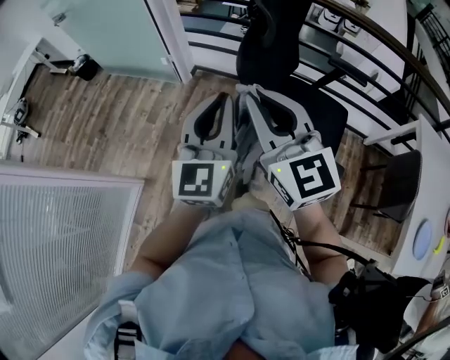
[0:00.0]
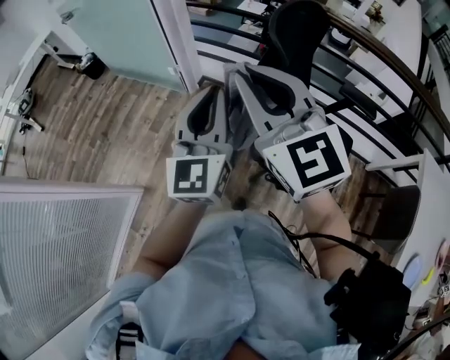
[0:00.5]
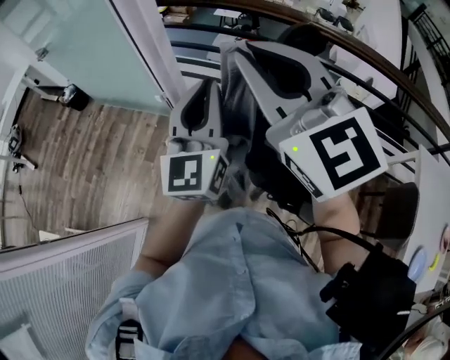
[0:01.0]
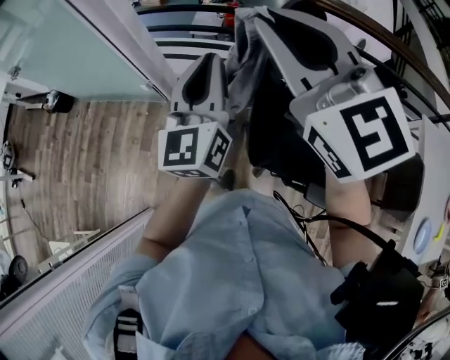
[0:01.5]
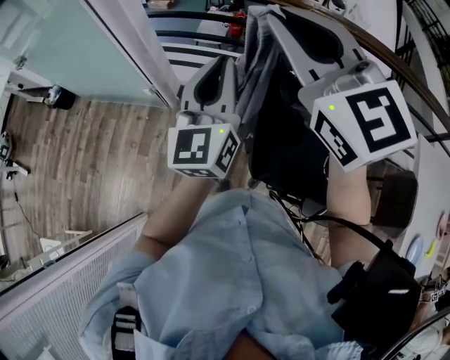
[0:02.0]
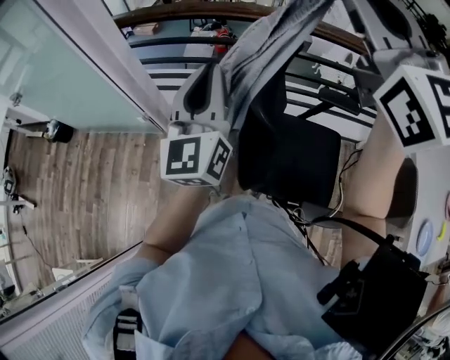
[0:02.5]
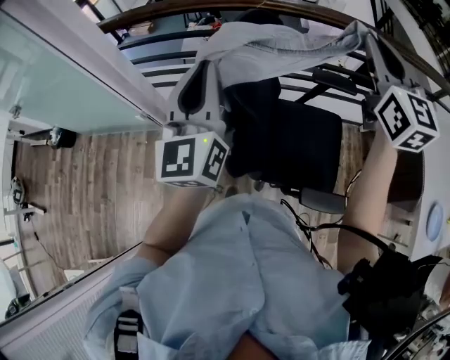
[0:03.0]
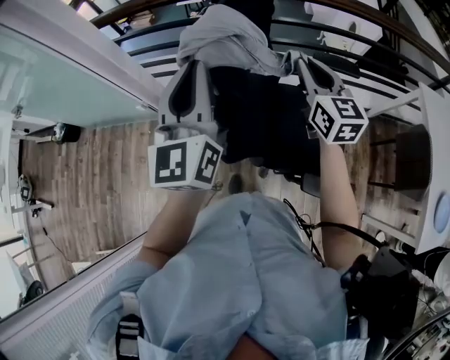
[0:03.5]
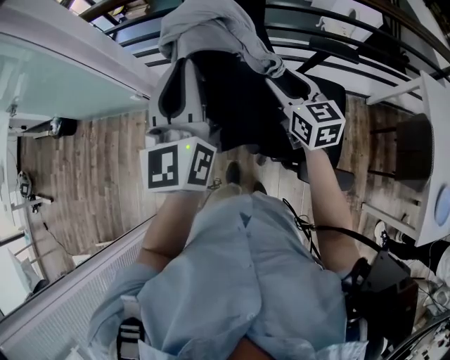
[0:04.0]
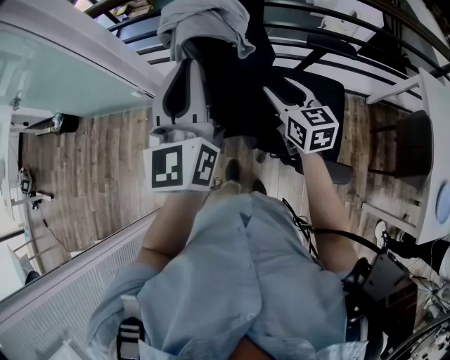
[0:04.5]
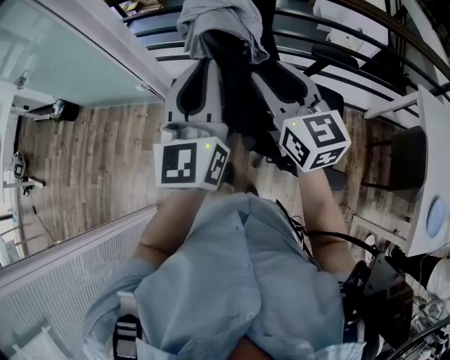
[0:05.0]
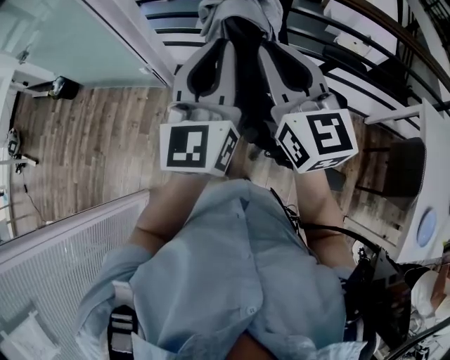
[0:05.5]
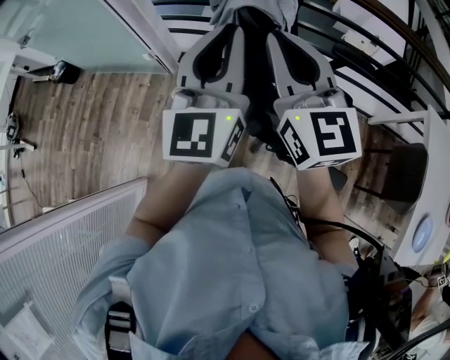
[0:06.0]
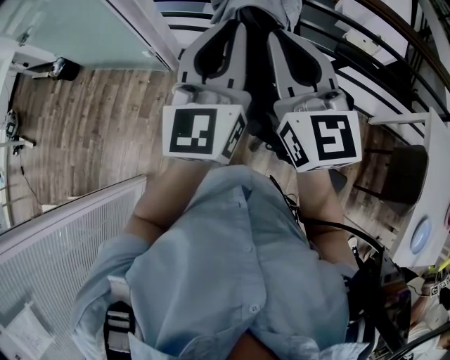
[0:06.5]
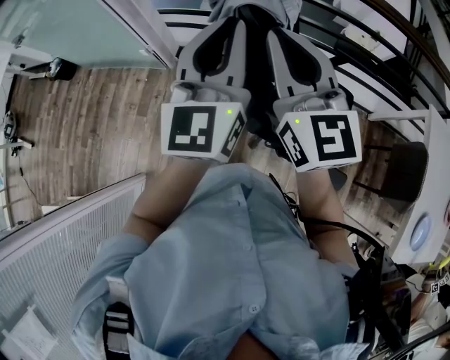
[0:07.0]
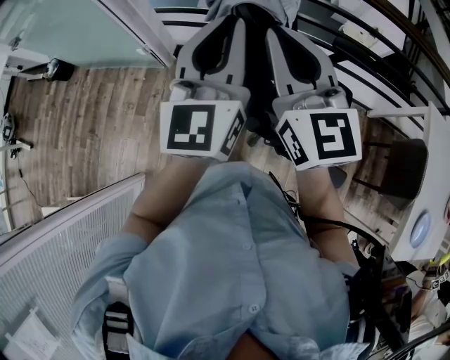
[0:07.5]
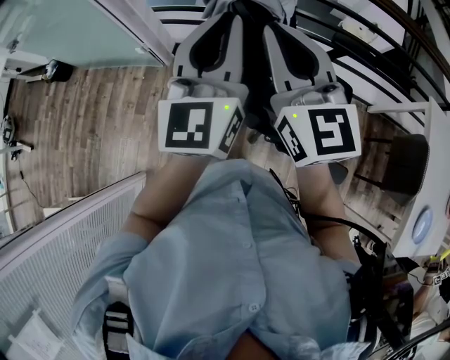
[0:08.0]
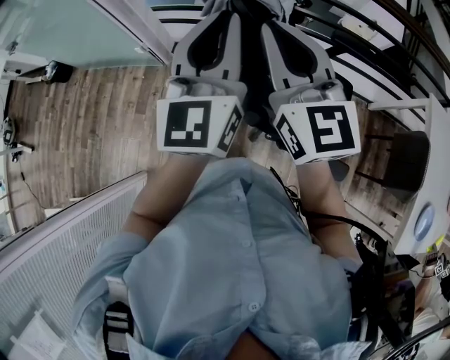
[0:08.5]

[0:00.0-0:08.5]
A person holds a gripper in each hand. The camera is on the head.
0:00.0 to 0:02.0: The left gripper moves forward, approximately 35 cm; the right gripper is displaced forward and upward by approximately 35 cm.
0:02.0 to 0:04.0: The right gripper travels downward and to the right by some 35 cm, changes its angle by approximately 40 degrees, and opens its fingers; the left gripper moves to the right and backward, roughly 10 cm.
0:04.0 to 0:06.5: The right gripper moves upward and to the left, roughly 20 cm, rotates about 30 degrees, and closes up.
0:06.5 to 0:08.5: Both grippers stay about where they are.

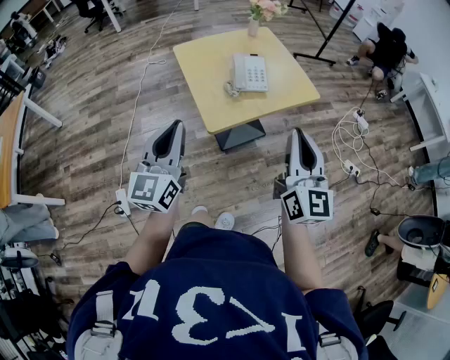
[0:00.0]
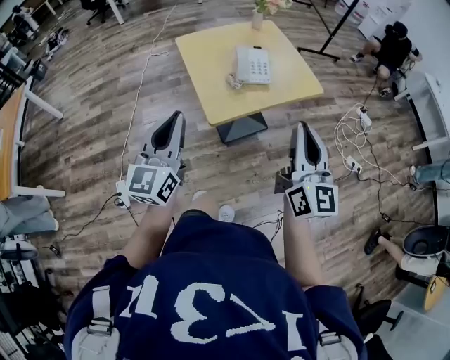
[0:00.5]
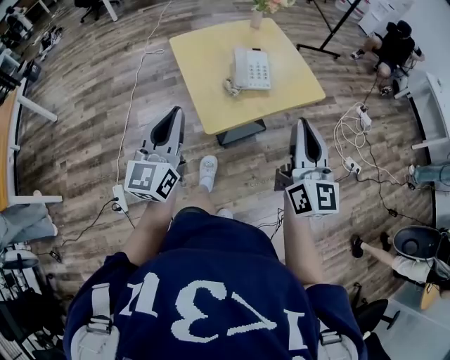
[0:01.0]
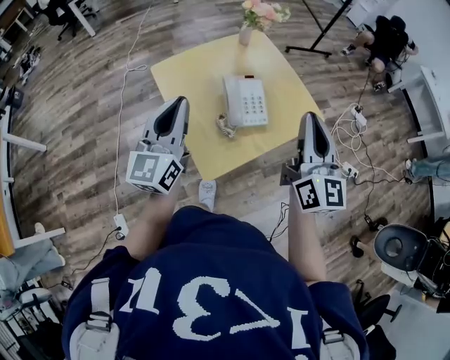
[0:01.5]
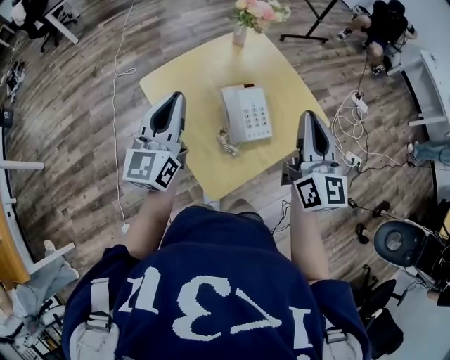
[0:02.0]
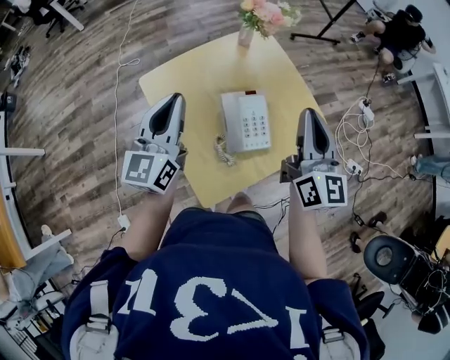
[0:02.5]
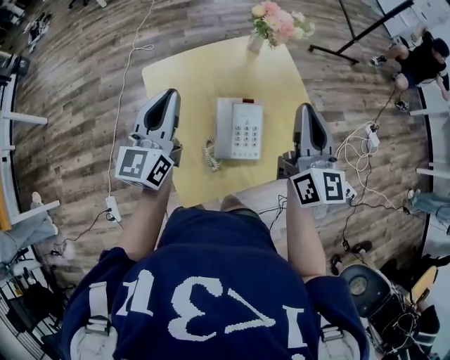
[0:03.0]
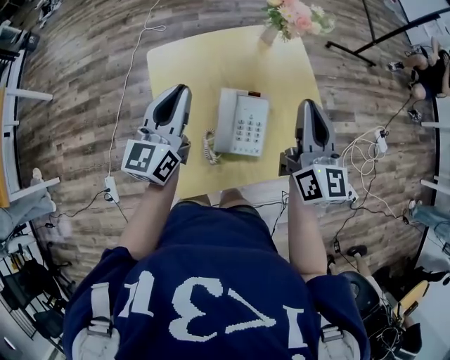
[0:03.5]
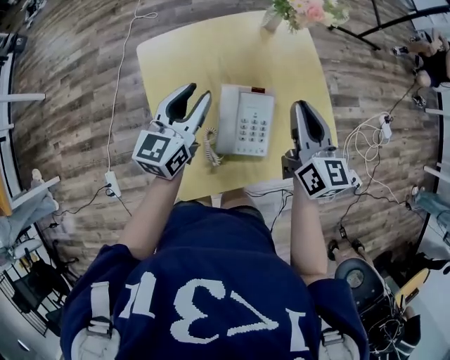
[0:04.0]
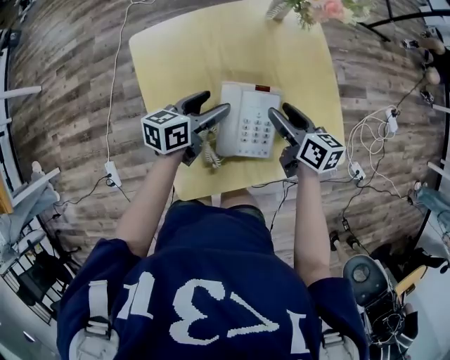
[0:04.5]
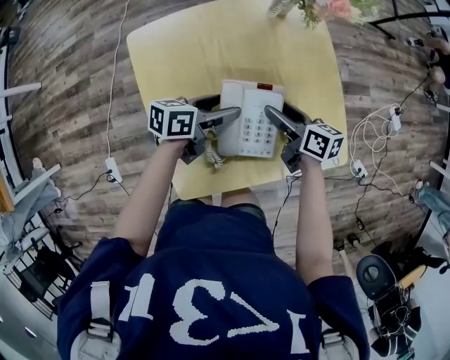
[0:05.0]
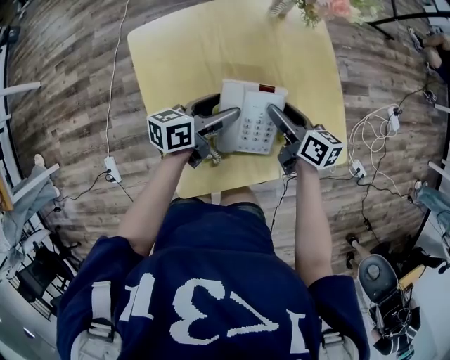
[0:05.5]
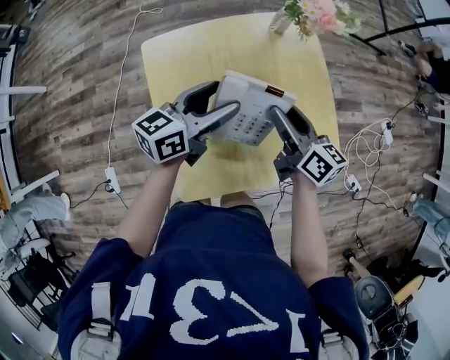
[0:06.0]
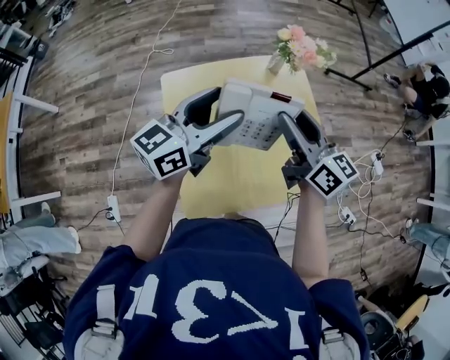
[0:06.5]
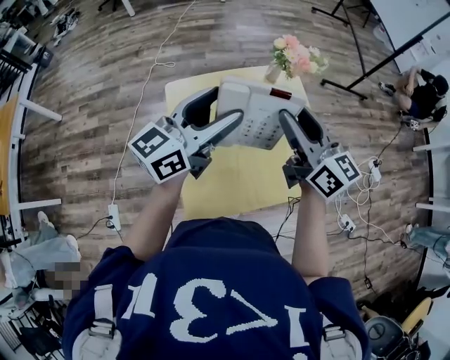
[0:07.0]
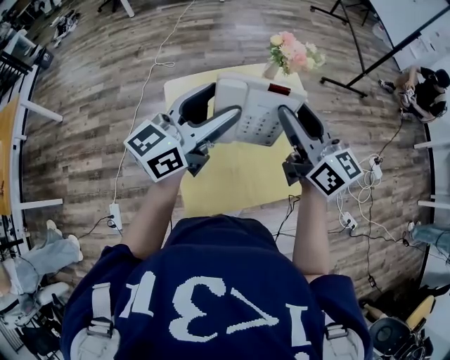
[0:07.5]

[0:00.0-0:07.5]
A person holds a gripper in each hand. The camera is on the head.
0:00.0 to 0:02.0: Both grippers travel together forward, roughly 35 cm.
0:02.0 to 0:04.0: The right gripper is displaced forward and downward by some 20 cm, and rotates some 30 degrees, while the left gripper is displaced downward, forward and to the right by about 20 cm, changes its angle by about 20 degrees, and opens up.
0:04.0 to 0:05.5: The left gripper is displaced downward and to the right by approximately 15 cm, turns by roughly 40 degrees, and opens; the right gripper moves downward, some 15 cm, turns by approximately 40 degrees, and opens its fingers.
0:05.5 to 0:07.5: Both grippers travel together upward, about 35 cm. The left gripper turns by roughly 50 degrees. The right gripper angles its fingers upward, by approximately 30 degrees.

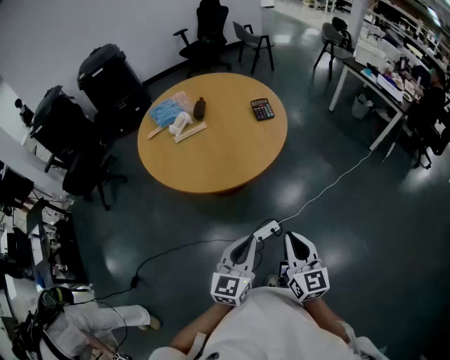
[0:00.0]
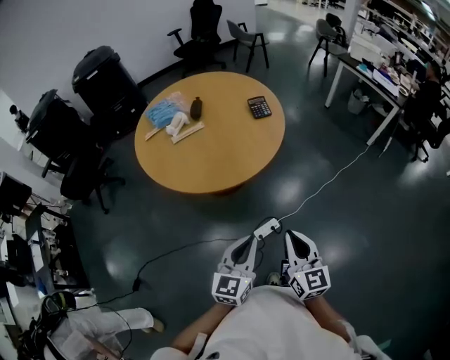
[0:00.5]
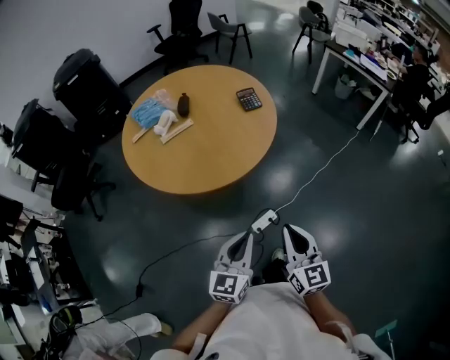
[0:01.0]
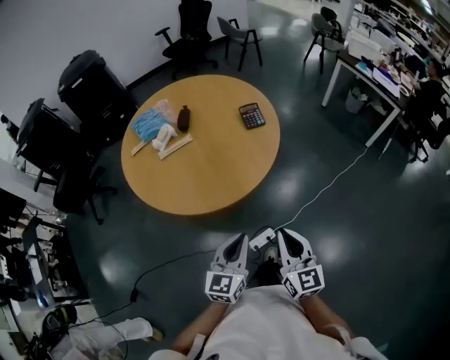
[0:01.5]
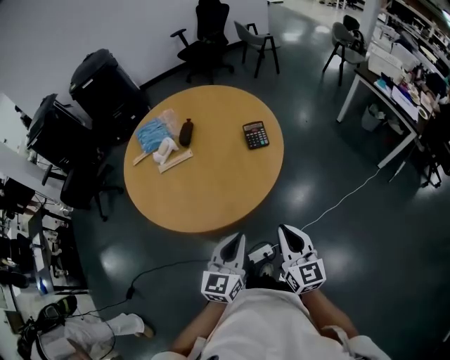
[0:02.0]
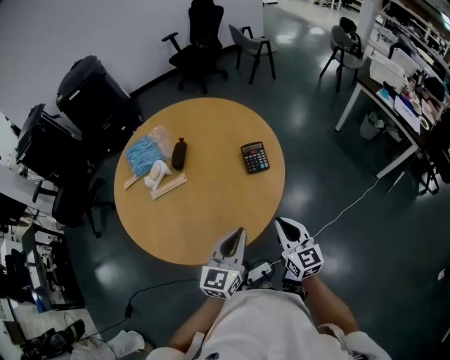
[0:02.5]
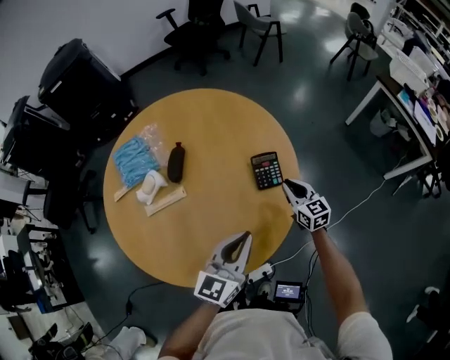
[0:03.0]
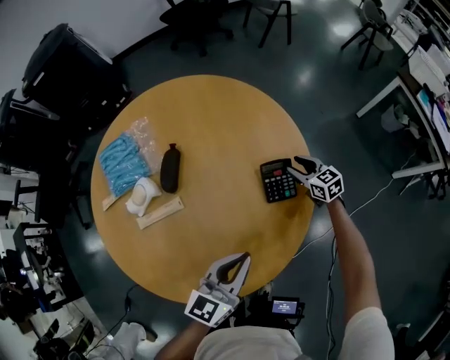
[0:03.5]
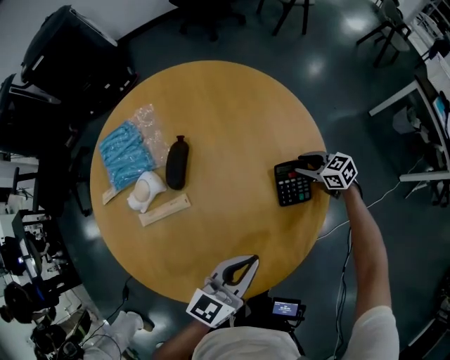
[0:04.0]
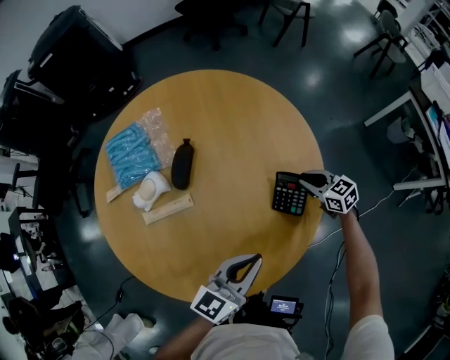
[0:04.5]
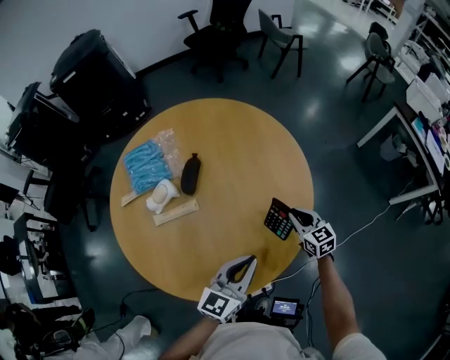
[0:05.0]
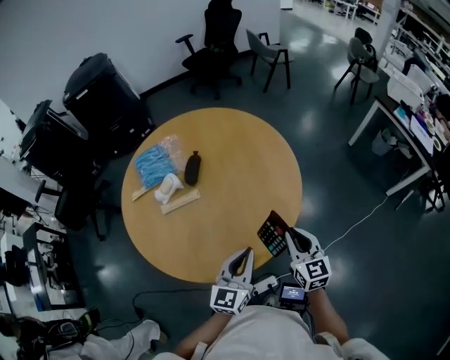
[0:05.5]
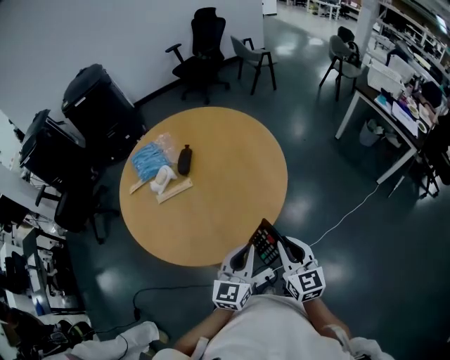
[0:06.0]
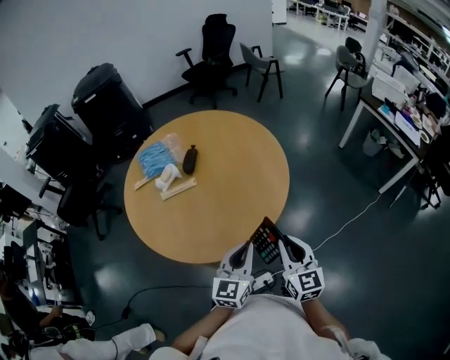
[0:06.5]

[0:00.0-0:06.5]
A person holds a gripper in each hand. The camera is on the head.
0:00.0 to 0:02.0: The two grippers go approximately 25 cm forward.
0:02.0 to 0:04.5: The left gripper travels forward by approximately 35 cm, and changes its angle by about 20 degrees. The right gripper is displaced forward and downward by about 60 cm, changes its angle by about 50 degrees, and opens, then closes again.
0:04.5 to 0:06.5: The right gripper shifts about 50 cm backward and upward, and changes its angle by some 40 degrees. Meanwhile the left gripper shifts about 25 cm backward, and changes its angle by approximately 20 degrees.

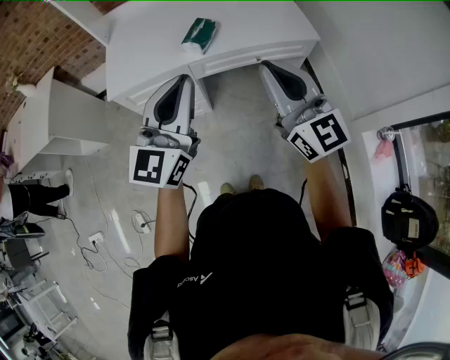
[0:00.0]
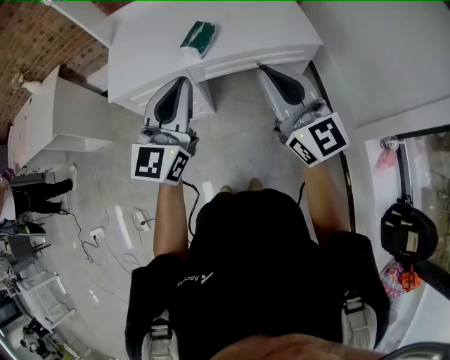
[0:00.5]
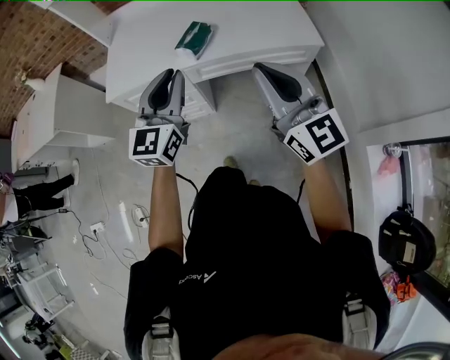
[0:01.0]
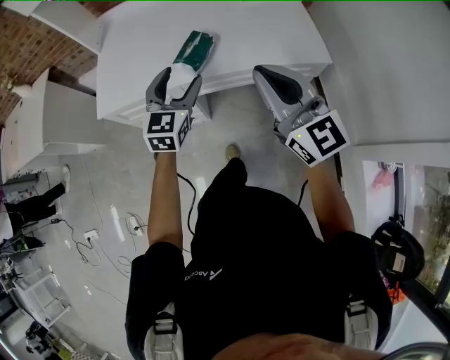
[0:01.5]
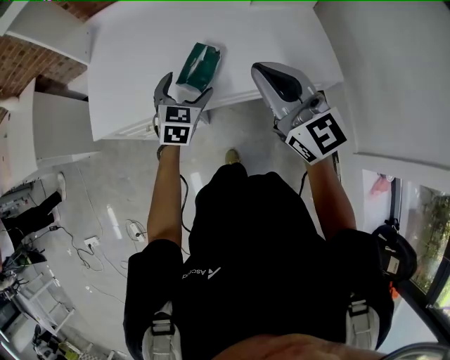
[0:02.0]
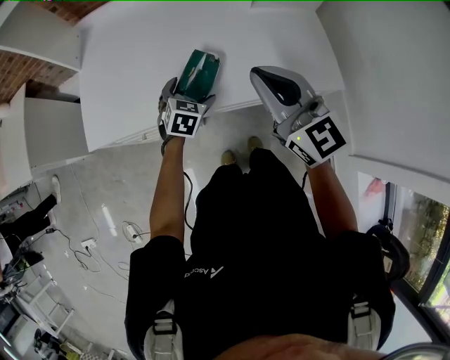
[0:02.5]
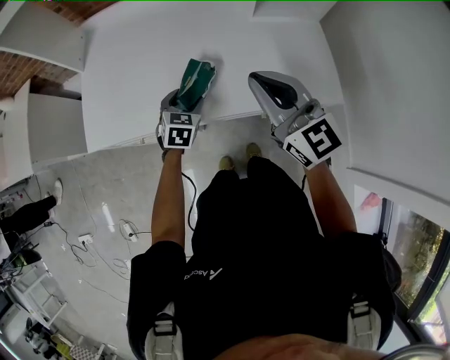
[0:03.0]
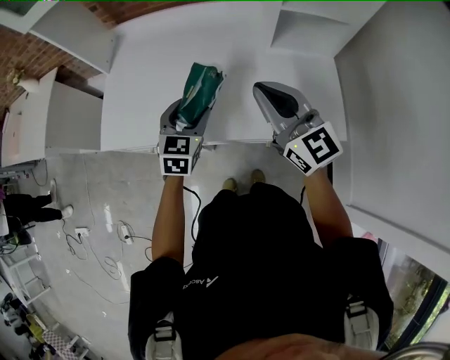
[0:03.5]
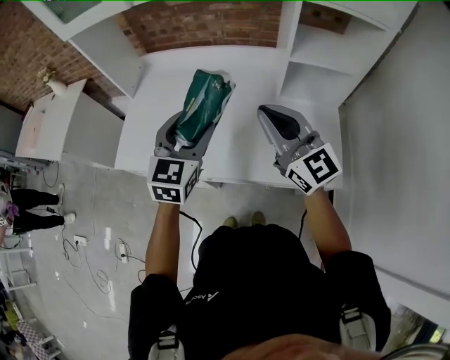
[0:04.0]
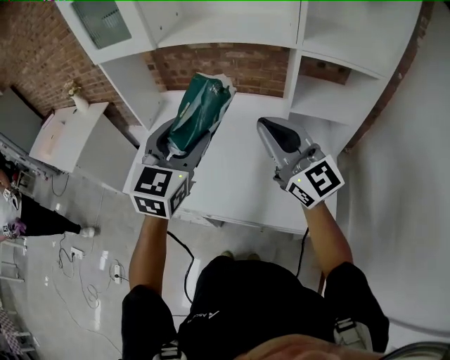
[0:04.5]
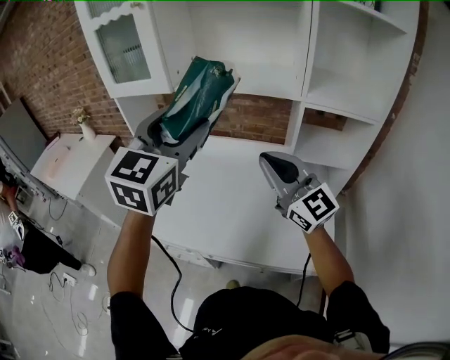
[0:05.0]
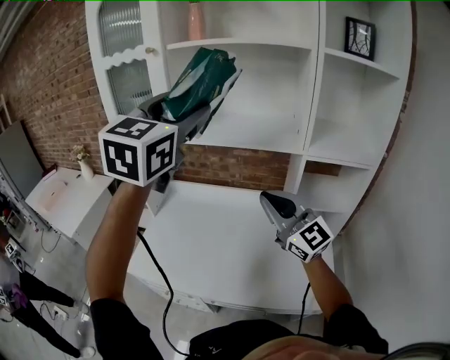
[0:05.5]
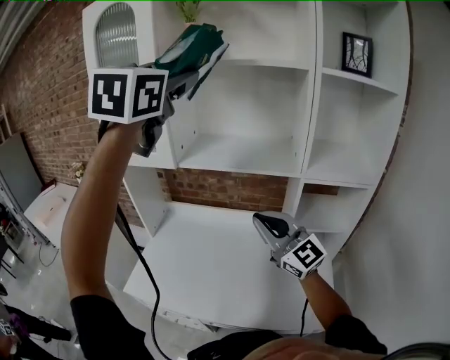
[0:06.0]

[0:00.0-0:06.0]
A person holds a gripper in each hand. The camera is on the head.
0:00.0 to 0:02.0: The left gripper moves forward and downward, roughly 50 cm, angles its fingers downward, by approximately 40 degrees, and opens up, while the right gripper shifts roughly 30 cm forward.
0:02.0 to 0:04.0: The left gripper travels upward by some 20 cm, turns by roughly 20 degrees, and closes up, while the right gripper shifts roughly 20 cm forward, to the right and upward.
0:04.0 to 0:06.0: The right gripper heads upward and forward, covering some 20 cm, while the left gripper moves upward, about 50 cm, and turns by some 20 degrees.
